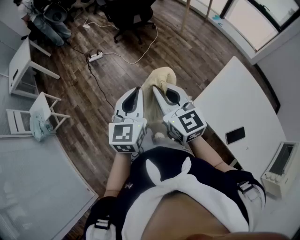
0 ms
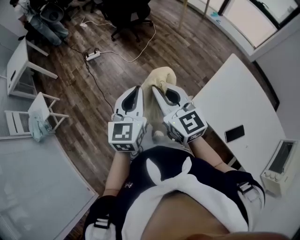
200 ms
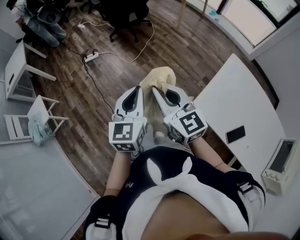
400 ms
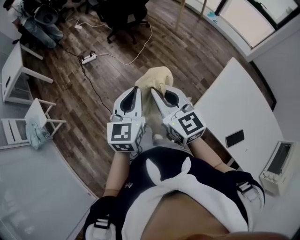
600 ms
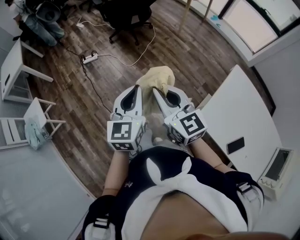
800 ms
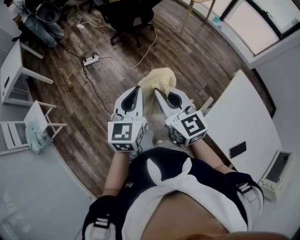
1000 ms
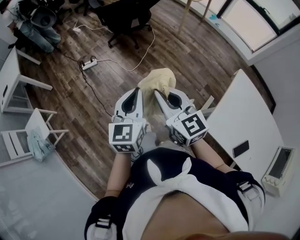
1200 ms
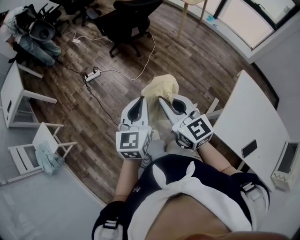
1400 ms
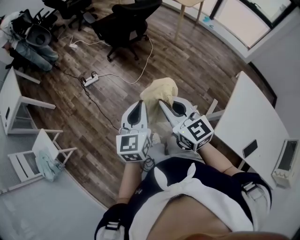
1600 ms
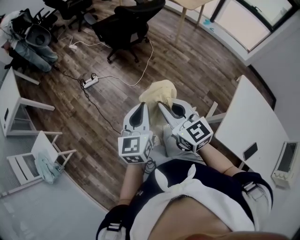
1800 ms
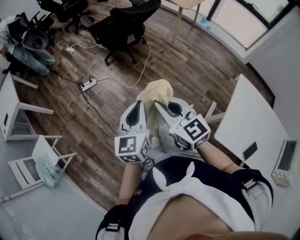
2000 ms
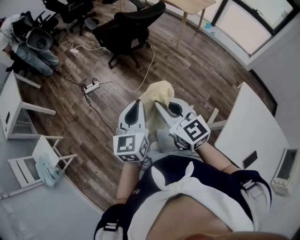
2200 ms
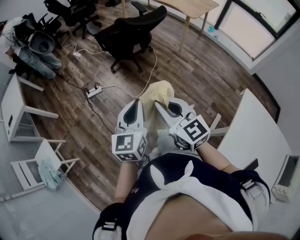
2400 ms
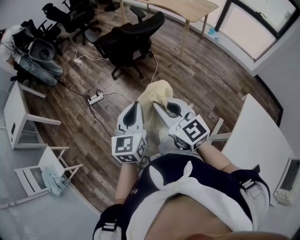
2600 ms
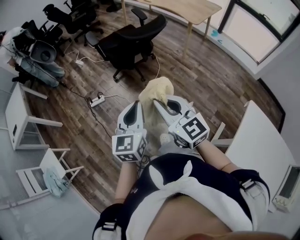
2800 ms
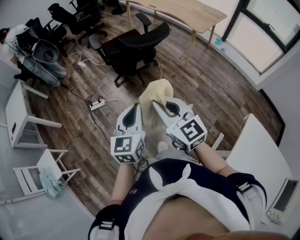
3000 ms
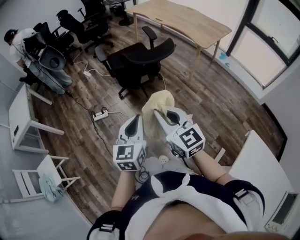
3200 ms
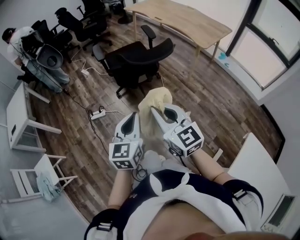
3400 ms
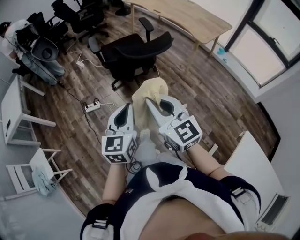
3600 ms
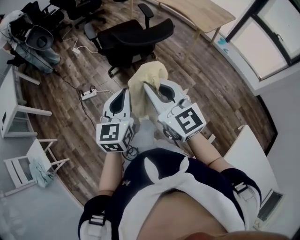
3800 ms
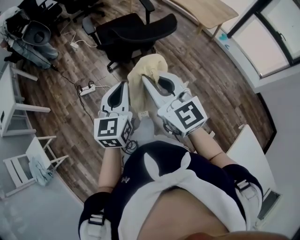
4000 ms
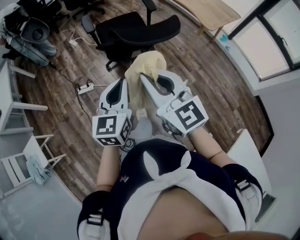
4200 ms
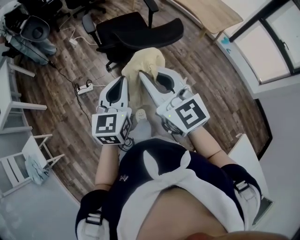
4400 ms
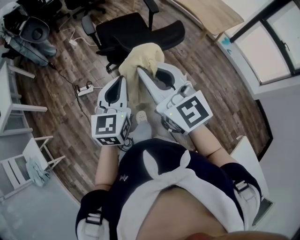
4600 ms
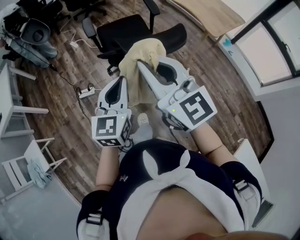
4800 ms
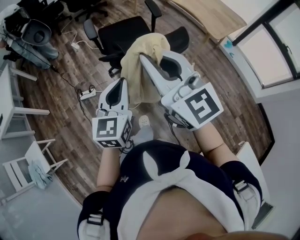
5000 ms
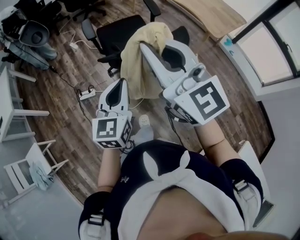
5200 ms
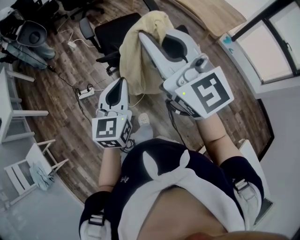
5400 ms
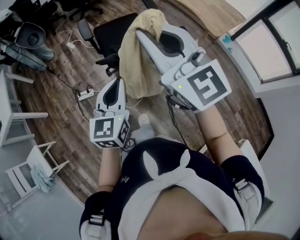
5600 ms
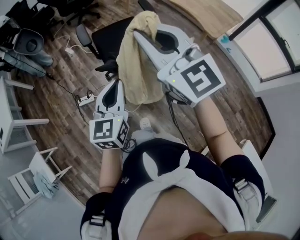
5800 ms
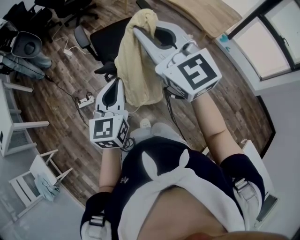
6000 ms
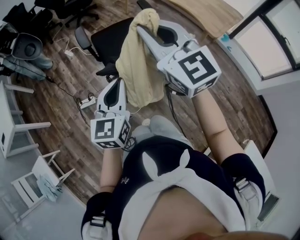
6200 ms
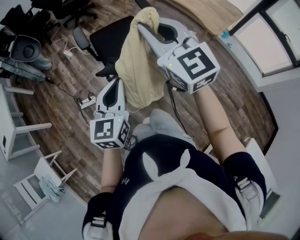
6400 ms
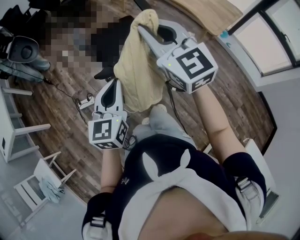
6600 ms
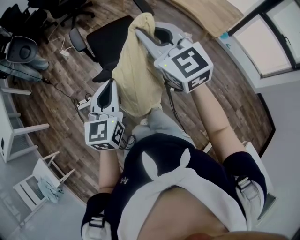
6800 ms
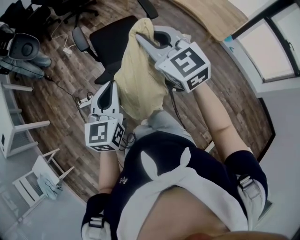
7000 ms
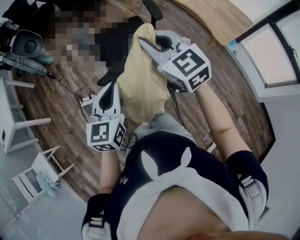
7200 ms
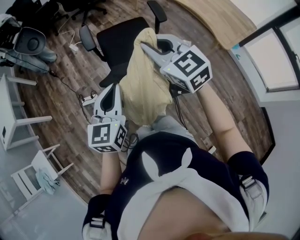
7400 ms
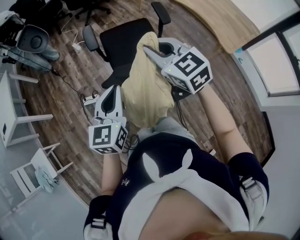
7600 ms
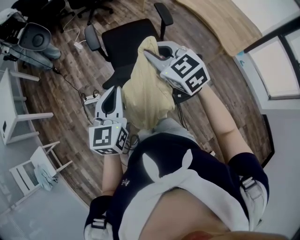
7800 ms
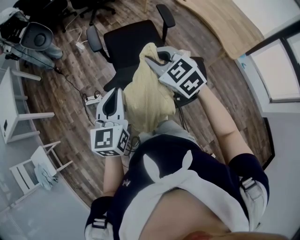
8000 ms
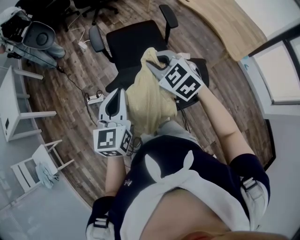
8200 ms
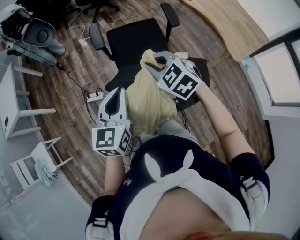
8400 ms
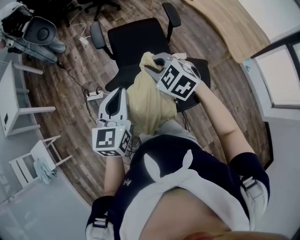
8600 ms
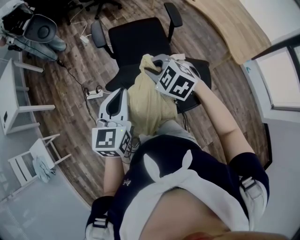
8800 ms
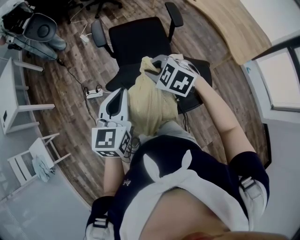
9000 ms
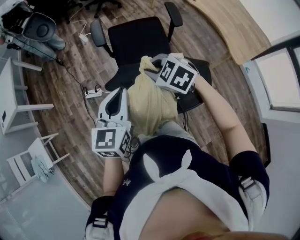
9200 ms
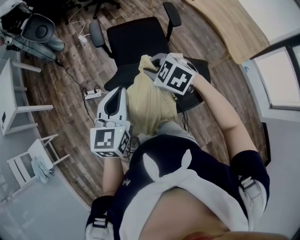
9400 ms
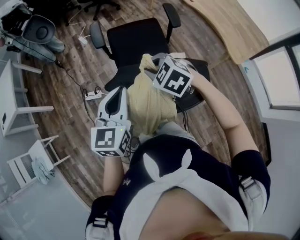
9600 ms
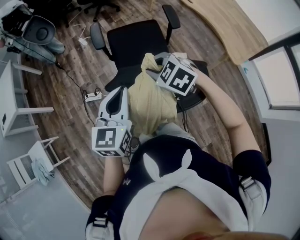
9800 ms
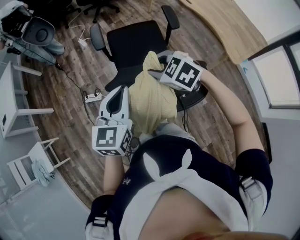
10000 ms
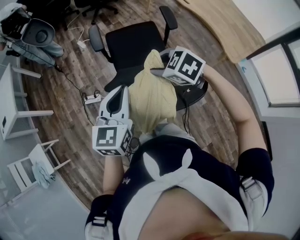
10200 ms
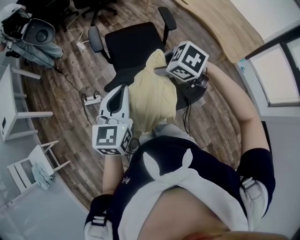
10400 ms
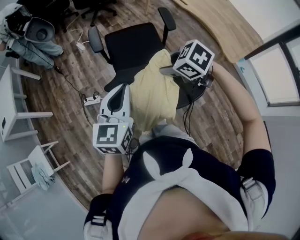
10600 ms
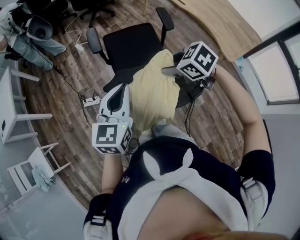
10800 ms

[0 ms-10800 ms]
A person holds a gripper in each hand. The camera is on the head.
0 ms to 1600 ms: The grippers both shift forward and to the left by about 30 cm.
1600 ms to 3000 ms: The two grippers go approximately 30 cm forward.
3000 ms to 4600 ms: The two grippers go approximately 25 cm forward.
4600 ms to 6200 ms: The right gripper moves forward, about 20 cm; the left gripper moves forward, roughly 15 cm.
6200 ms to 7800 ms: The left gripper goes about 10 cm forward. Meanwhile the right gripper goes about 20 cm forward and downward, and turns by roughly 30 degrees.
7800 ms to 9200 ms: The right gripper is displaced downward by some 10 cm, and turns by approximately 30 degrees.
9200 ms to 10800 ms: The right gripper shifts about 5 cm to the right, and opens.

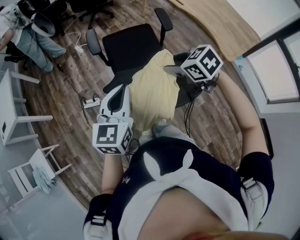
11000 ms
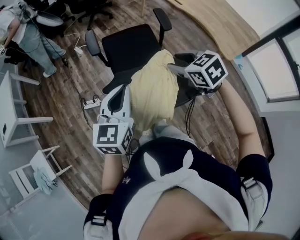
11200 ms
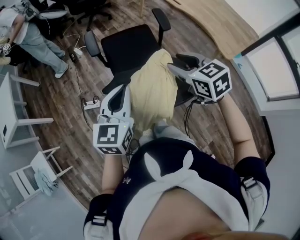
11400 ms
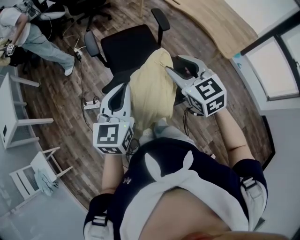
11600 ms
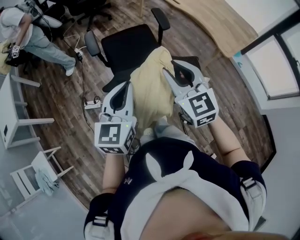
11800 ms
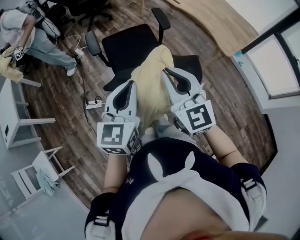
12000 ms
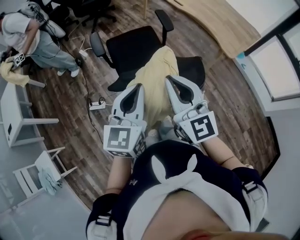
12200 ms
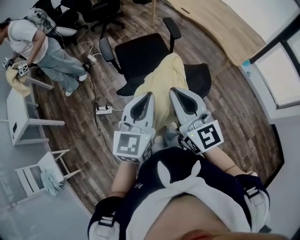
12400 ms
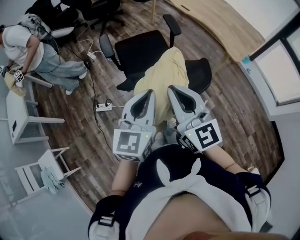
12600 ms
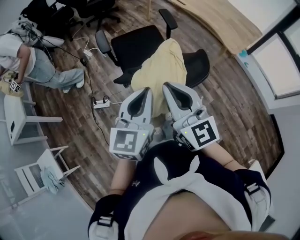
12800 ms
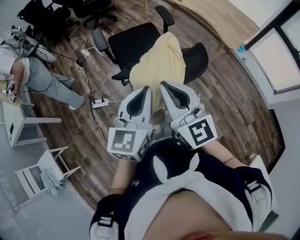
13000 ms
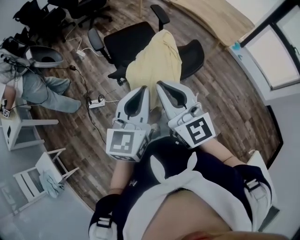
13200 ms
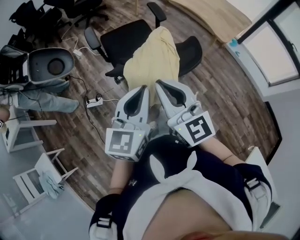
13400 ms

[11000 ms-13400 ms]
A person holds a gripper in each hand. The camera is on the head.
11000 ms to 12200 ms: The left gripper shifts by roughly 5 cm; the right gripper is displaced upward and backward by about 15 cm, tips its fingers upward by about 50 degrees, and closes its fingers.
12200 ms to 13400 ms: The right gripper is displaced backward and to the left by some 10 cm. Meanwhile the left gripper travels backward by roughly 10 cm.

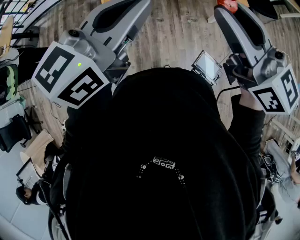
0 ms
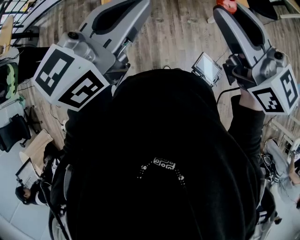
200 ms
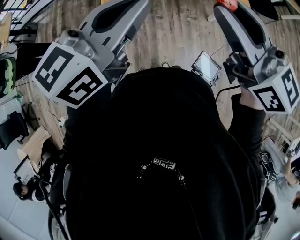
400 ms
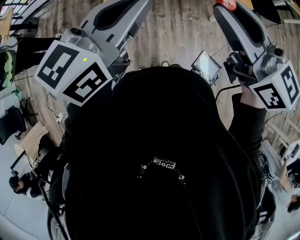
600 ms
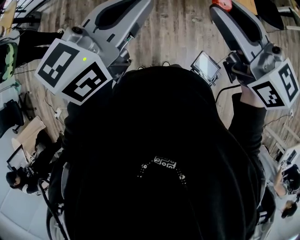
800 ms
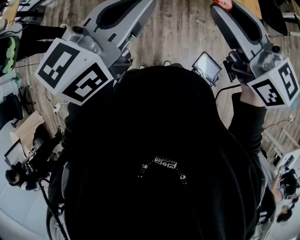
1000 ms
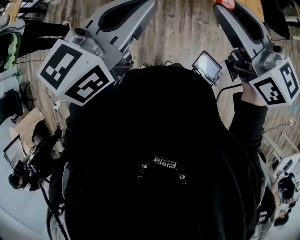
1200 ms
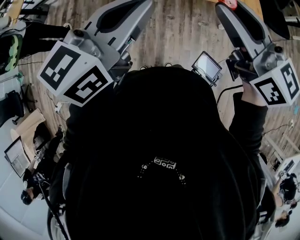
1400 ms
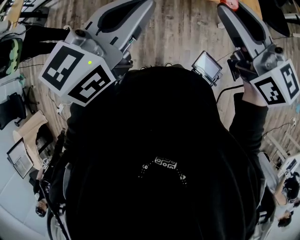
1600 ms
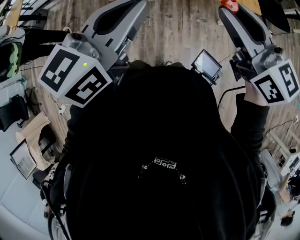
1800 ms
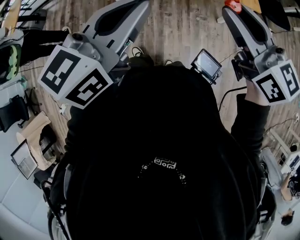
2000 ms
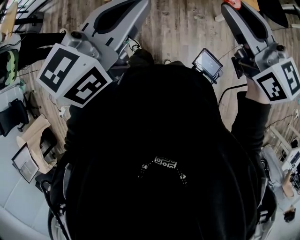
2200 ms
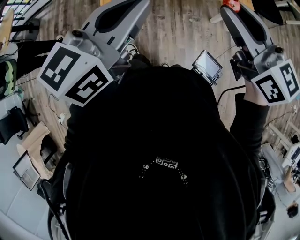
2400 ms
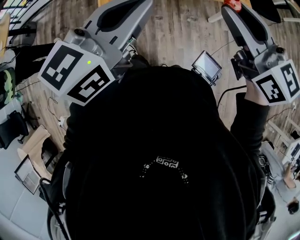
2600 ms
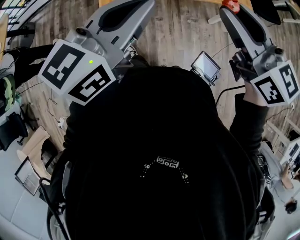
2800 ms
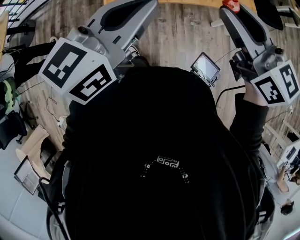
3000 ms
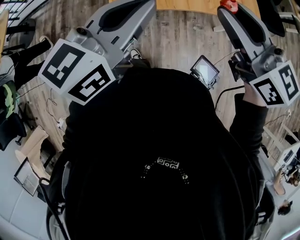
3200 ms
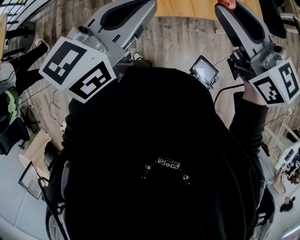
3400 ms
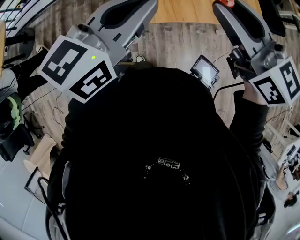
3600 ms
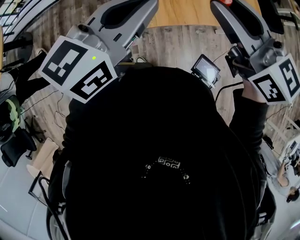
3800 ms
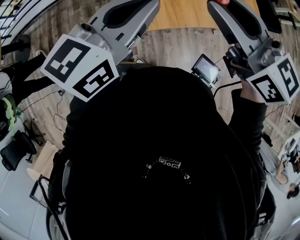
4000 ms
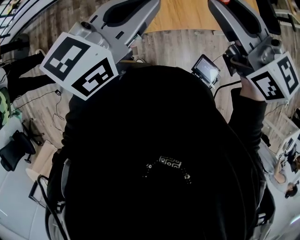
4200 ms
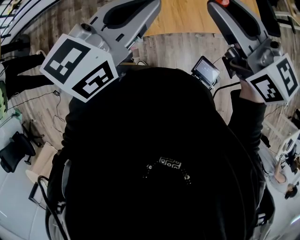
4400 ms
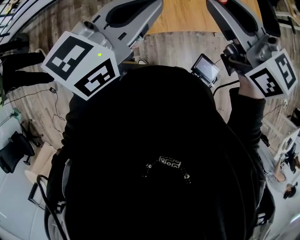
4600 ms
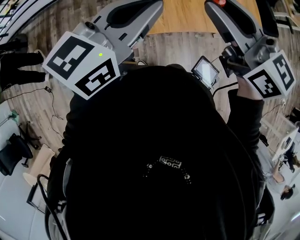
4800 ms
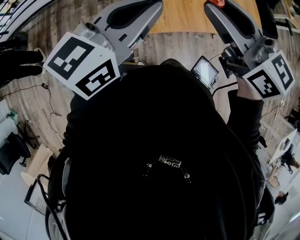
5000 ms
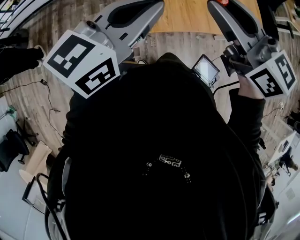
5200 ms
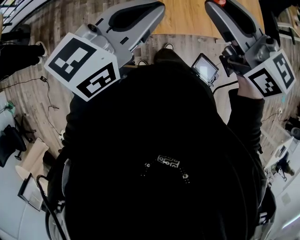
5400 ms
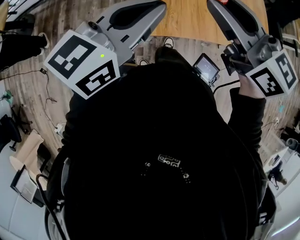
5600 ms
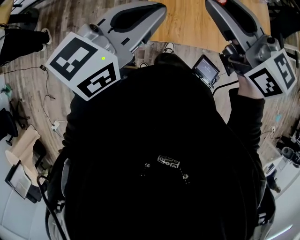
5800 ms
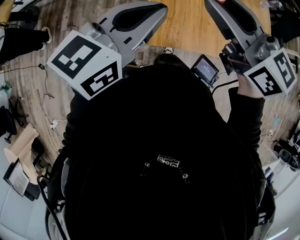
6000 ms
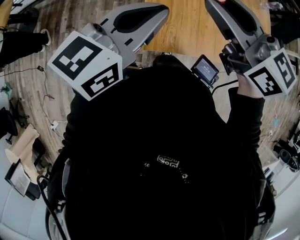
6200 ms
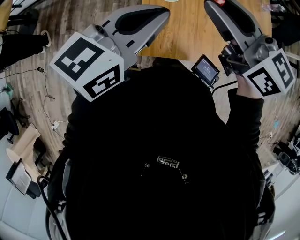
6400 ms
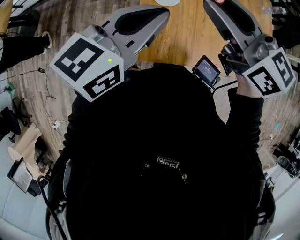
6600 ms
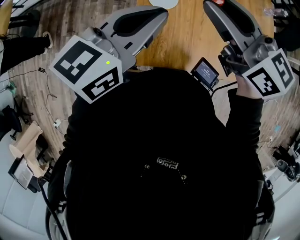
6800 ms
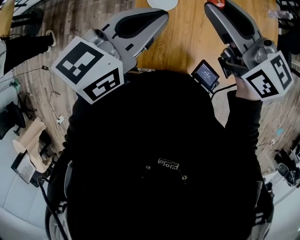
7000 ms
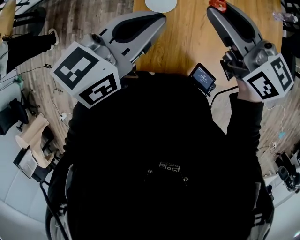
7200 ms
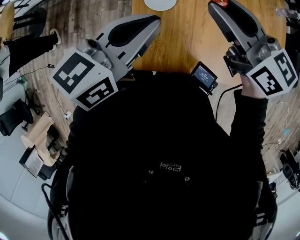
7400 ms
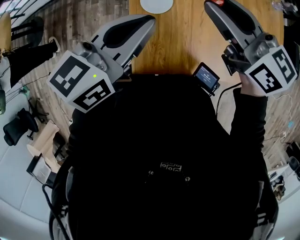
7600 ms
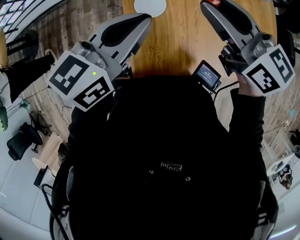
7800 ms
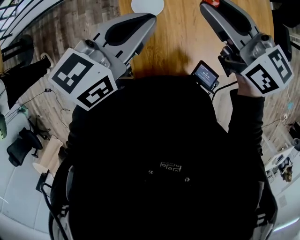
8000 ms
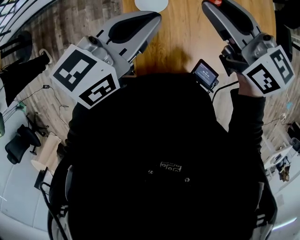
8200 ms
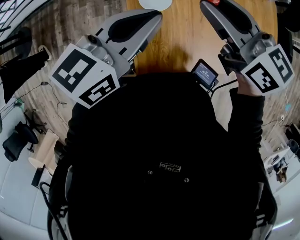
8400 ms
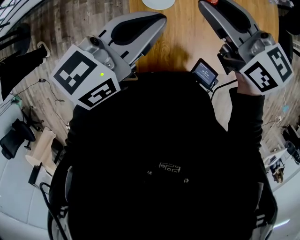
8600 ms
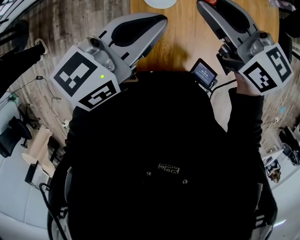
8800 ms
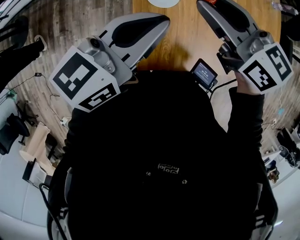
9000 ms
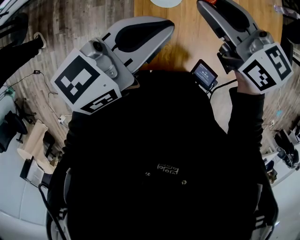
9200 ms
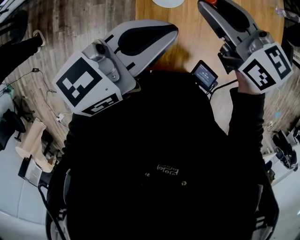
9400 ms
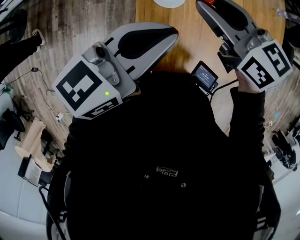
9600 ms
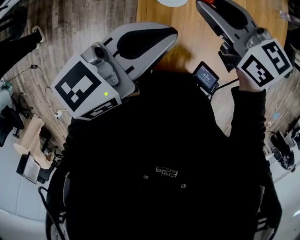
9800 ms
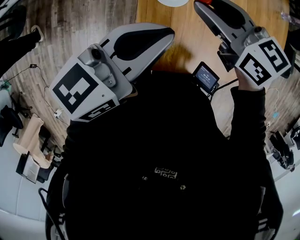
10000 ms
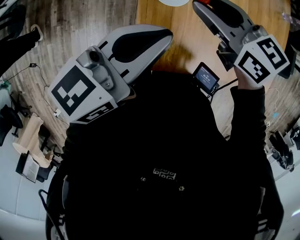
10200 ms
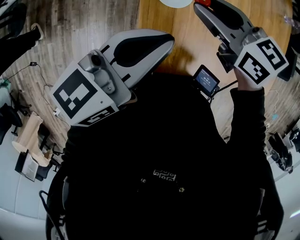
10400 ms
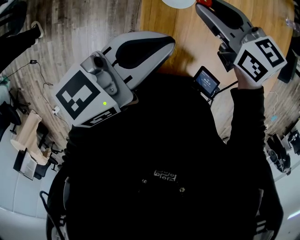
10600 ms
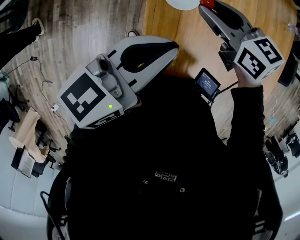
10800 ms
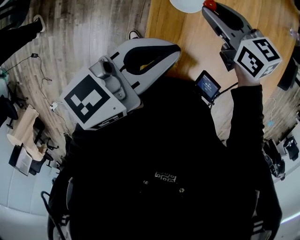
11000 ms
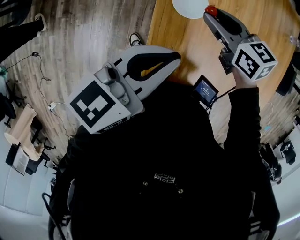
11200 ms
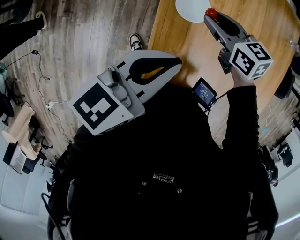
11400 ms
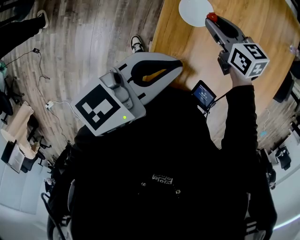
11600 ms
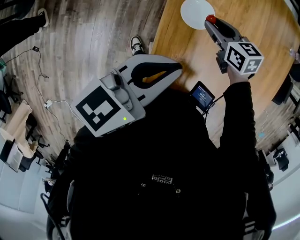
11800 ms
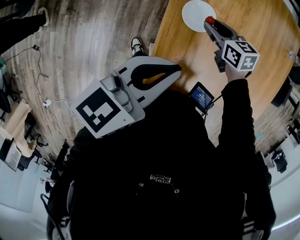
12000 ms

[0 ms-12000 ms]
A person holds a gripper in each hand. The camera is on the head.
0 ms to 1600 ms: There are only small adjustments of the grippers.
1600 ms to 3000 ms: The two grippers go roughly 10 cm forward and downward.
3000 ms to 4400 ms: Both grippers travel together forward and to the left, about 20 cm.
4400 ms to 6000 ms: The left gripper moves to the left and forward, approximately 10 cm; the right gripper goes approximately 10 cm forward and to the left.
6000 ms to 7600 ms: The right gripper travels forward, to the right and downward by some 15 cm. The left gripper moves forward, approximately 10 cm.
7600 ms to 9000 ms: The right gripper ends up approximately 5 cm from where it was.
9000 ms to 10400 ms: The right gripper travels downward by approximately 5 cm.
10400 ms to 12000 ms: The right gripper is displaced downward by approximately 20 cm.
